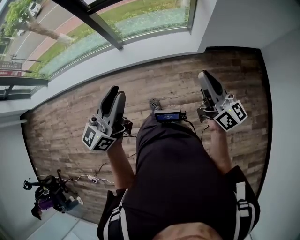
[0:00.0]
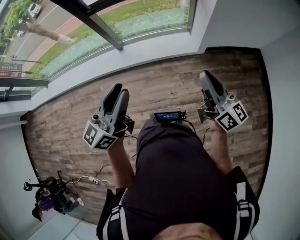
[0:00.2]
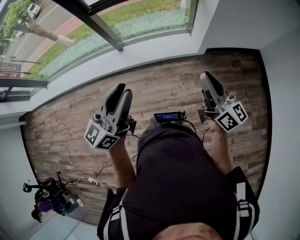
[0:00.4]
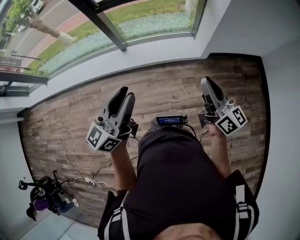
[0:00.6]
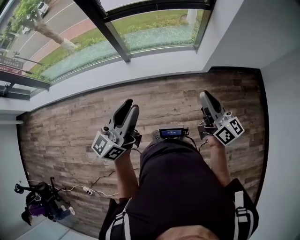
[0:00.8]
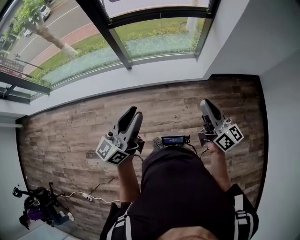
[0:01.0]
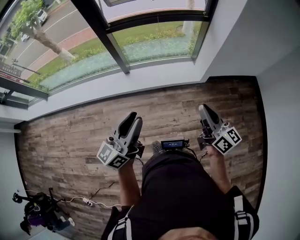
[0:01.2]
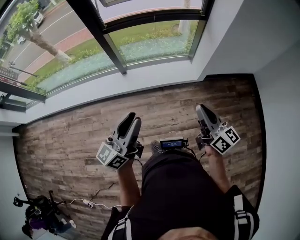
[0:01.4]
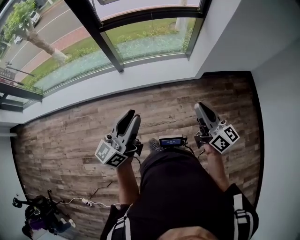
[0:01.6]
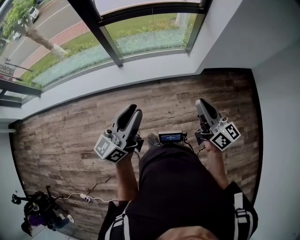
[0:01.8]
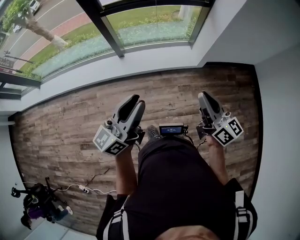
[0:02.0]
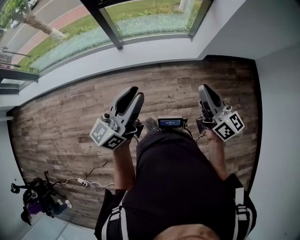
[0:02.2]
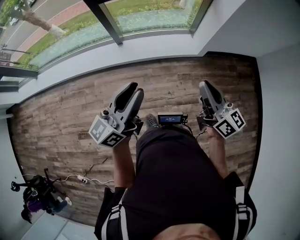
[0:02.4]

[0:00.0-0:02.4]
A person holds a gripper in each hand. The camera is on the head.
0:00.0 to 0:01.2: Both grippers move to the left, some 10 cm.
0:01.2 to 0:02.4: The grippers stay close to where they were, moving slightly.

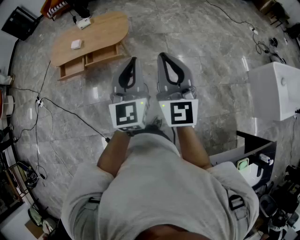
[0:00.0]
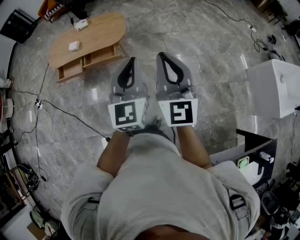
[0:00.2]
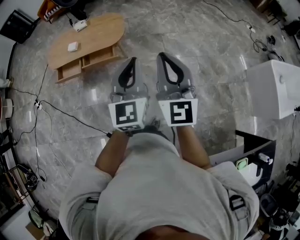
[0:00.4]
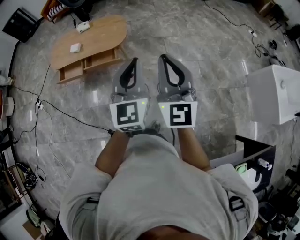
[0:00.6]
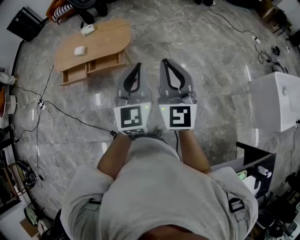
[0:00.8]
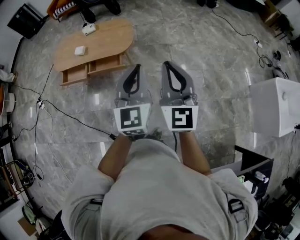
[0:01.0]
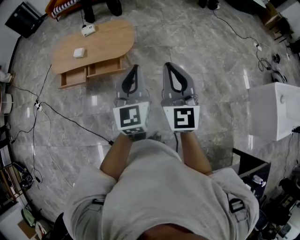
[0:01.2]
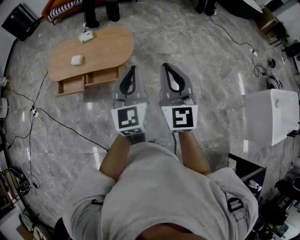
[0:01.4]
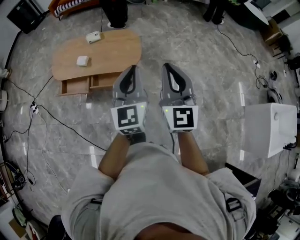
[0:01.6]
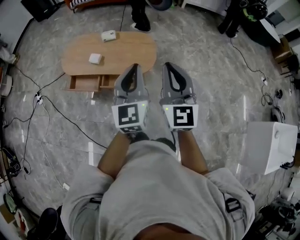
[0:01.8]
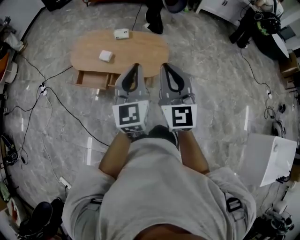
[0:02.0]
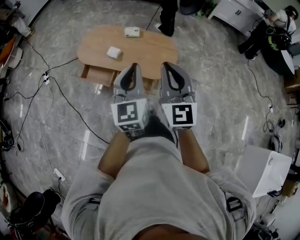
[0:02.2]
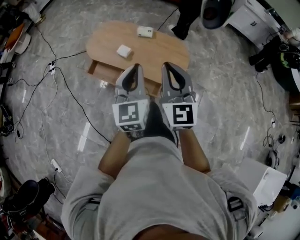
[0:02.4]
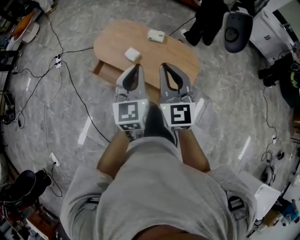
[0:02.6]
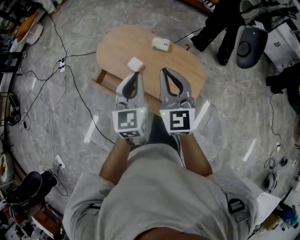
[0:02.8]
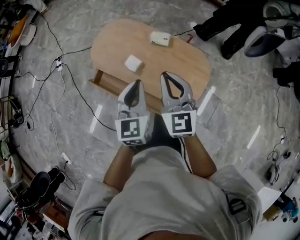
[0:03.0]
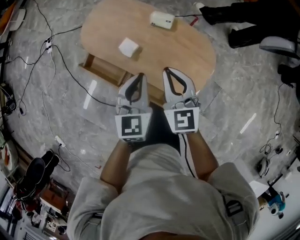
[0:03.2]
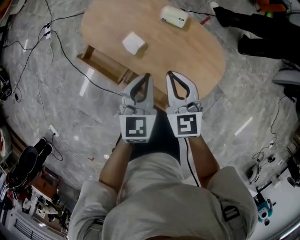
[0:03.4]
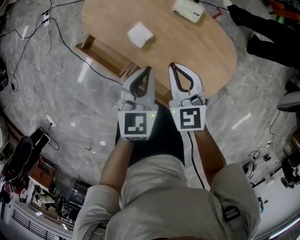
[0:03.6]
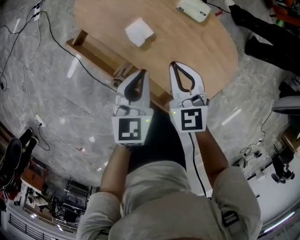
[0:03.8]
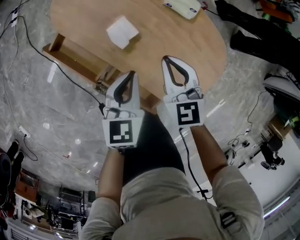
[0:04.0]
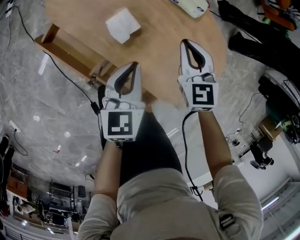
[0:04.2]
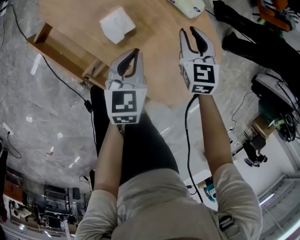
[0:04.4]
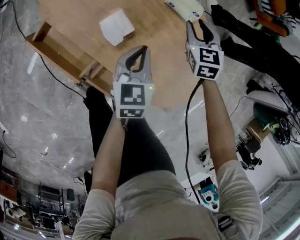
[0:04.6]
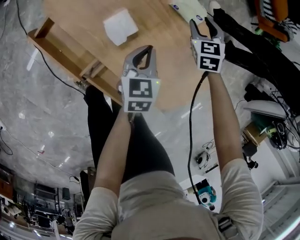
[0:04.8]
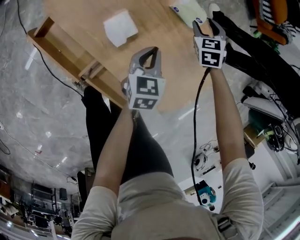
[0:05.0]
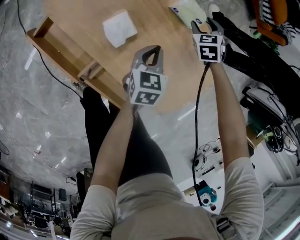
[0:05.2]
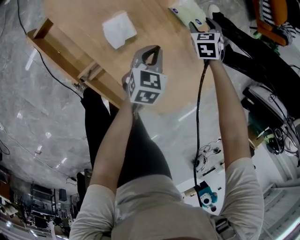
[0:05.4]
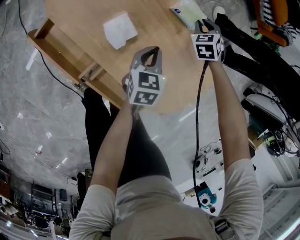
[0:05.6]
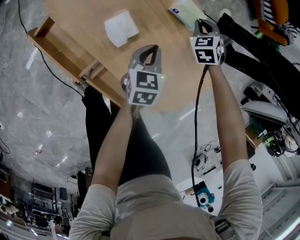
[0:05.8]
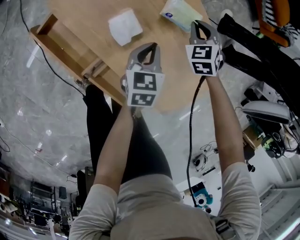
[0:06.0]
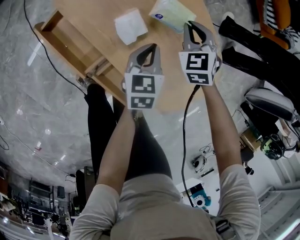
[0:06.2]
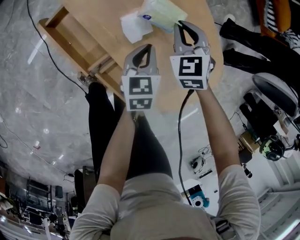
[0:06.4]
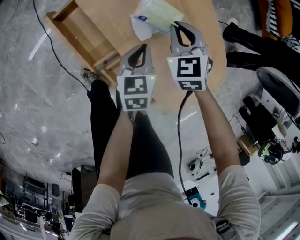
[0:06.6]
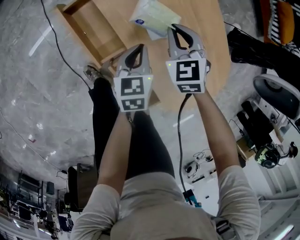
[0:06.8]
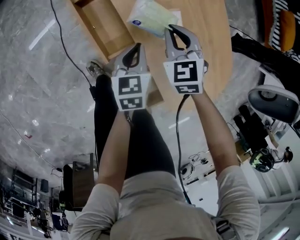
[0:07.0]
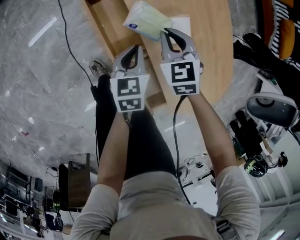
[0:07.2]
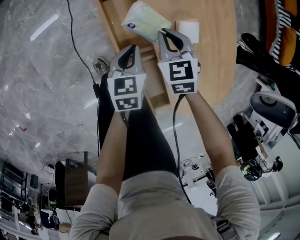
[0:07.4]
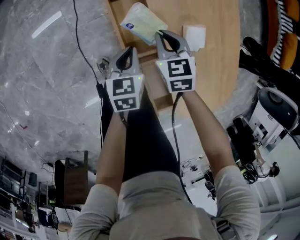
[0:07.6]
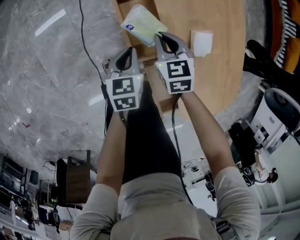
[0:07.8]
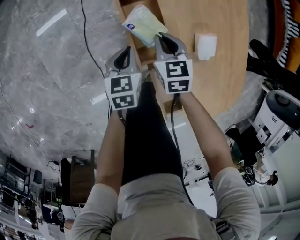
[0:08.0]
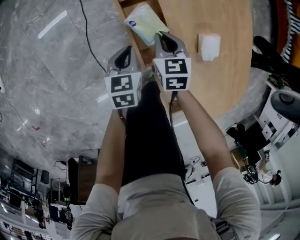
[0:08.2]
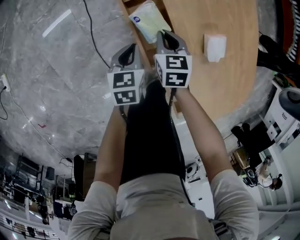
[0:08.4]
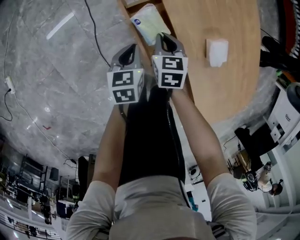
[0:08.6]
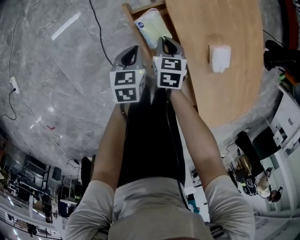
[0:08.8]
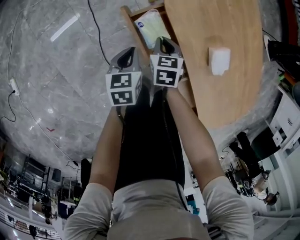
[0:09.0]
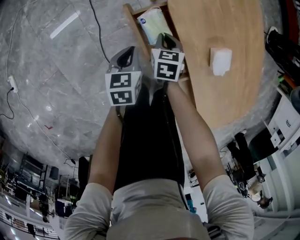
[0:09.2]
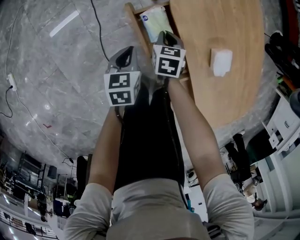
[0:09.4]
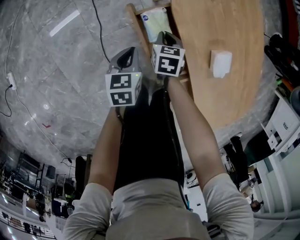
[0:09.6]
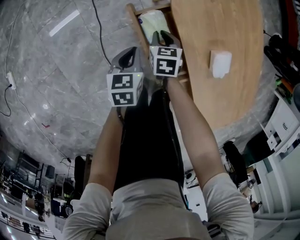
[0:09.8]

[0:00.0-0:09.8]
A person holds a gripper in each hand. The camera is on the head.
0:00.0 to 0:01.4: Both grippers move forward, roughly 20 cm.
0:01.4 to 0:02.8: The pair of grippers is taken some 60 cm. The left gripper changes its angle by approximately 30 degrees, while the right gripper swivels about 40 degrees.
0:02.8 to 0:04.2: The right gripper shifts approximately 50 cm downward and forward, and tilts its fingers about 30 degrees downward, while the left gripper moves downward, approximately 40 cm, and changes its angle by approximately 30 degrees.
0:04.2 to 0:05.6: The right gripper heads forward, downward and to the right, covering about 25 cm, rotates approximately 30 degrees, and opens and closes again. The left gripper is displaced downward, to the right and forward by approximately 15 cm.
0:05.6 to 0:07.0: The right gripper changes place by roughly 40 cm, and turns by approximately 30 degrees. Meanwhile the left gripper moves roughly 25 cm, and turns by about 30 degrees.
0:07.0 to 0:08.4: The right gripper shifts about 20 cm to the left and downward, and rotates approximately 30 degrees; the left gripper shifts some 20 cm to the left.
0:08.4 to 0:09.8: The left gripper changes place by some 5 cm. The right gripper is displaced downward by approximately 5 cm.

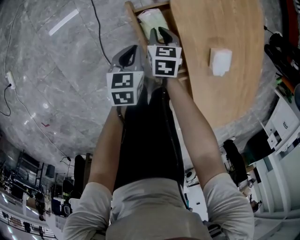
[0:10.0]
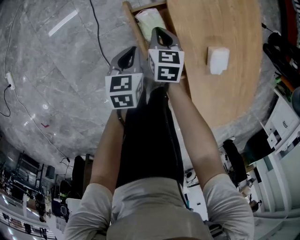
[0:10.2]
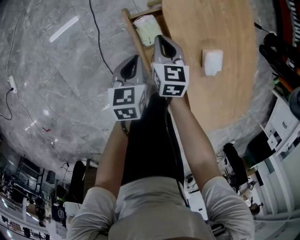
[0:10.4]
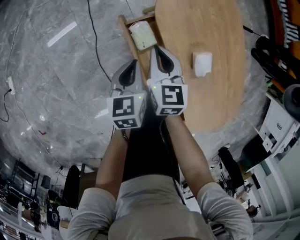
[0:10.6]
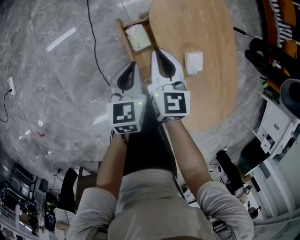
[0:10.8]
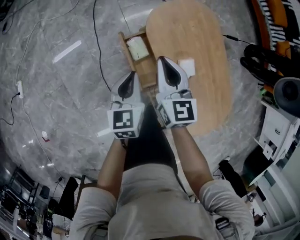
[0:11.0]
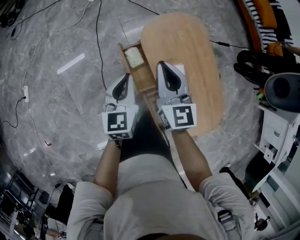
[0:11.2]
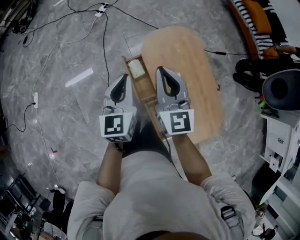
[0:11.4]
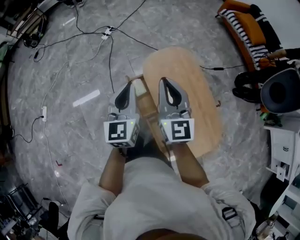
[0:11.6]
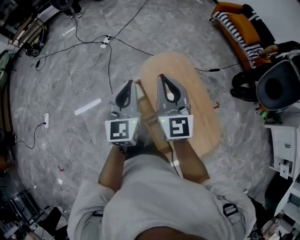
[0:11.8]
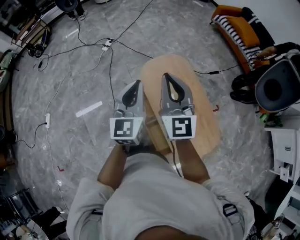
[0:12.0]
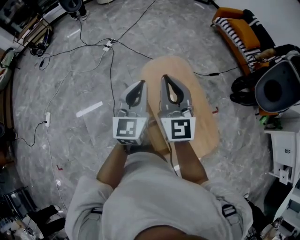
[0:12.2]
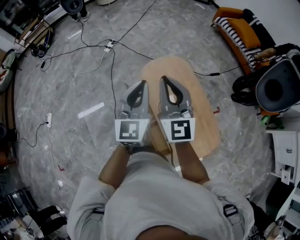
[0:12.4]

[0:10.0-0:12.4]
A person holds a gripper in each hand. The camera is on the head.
0:10.0 to 0:11.2: Both grippers move upward, approximately 40 cm. The left gripper turns by about 30 degrees. The right gripper tilts its fingers about 40 degrees upward.
0:11.2 to 0:12.4: The right gripper moves upward, to the right and backward, roughly 25 cm, and changes its angle by about 20 degrees; the left gripper goes approximately 30 cm upward and to the right, and rotates approximately 20 degrees.

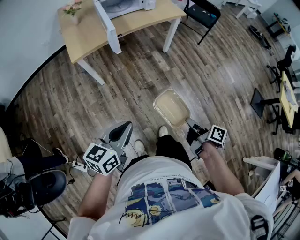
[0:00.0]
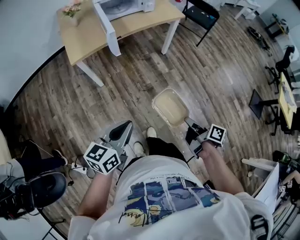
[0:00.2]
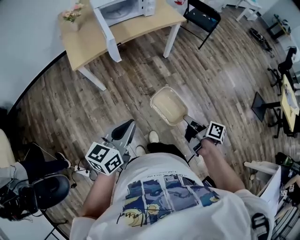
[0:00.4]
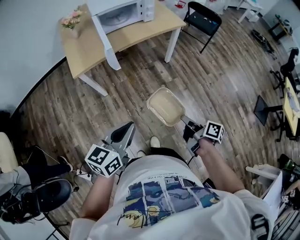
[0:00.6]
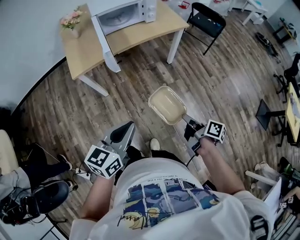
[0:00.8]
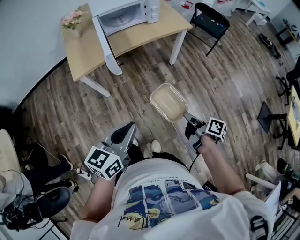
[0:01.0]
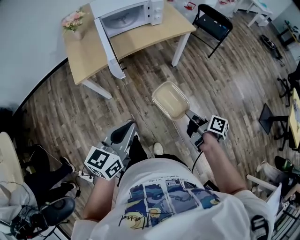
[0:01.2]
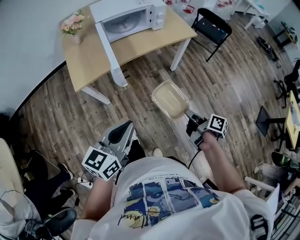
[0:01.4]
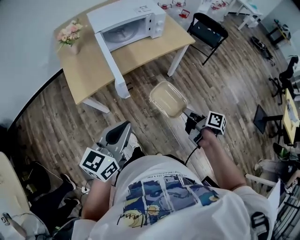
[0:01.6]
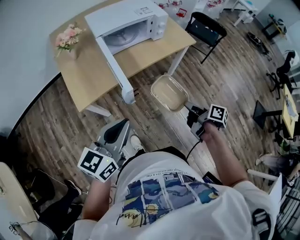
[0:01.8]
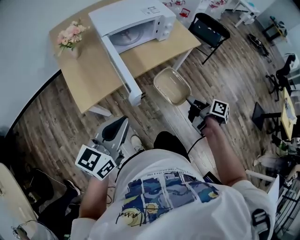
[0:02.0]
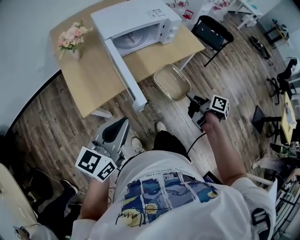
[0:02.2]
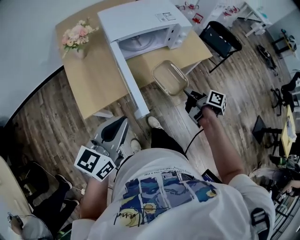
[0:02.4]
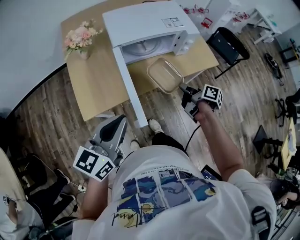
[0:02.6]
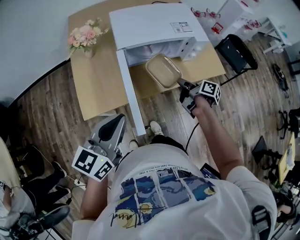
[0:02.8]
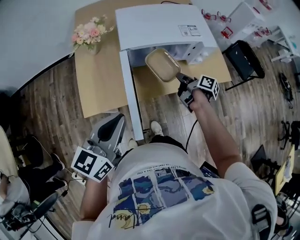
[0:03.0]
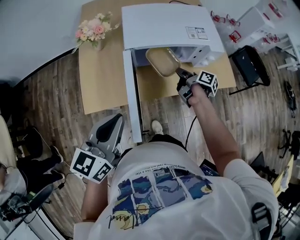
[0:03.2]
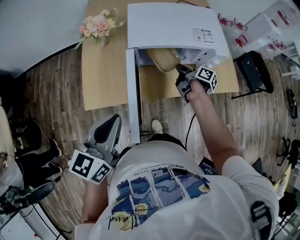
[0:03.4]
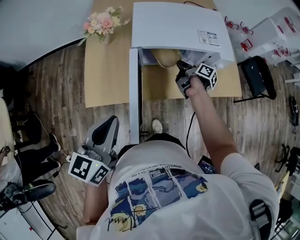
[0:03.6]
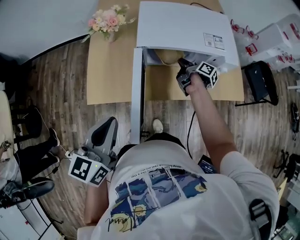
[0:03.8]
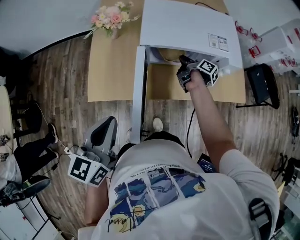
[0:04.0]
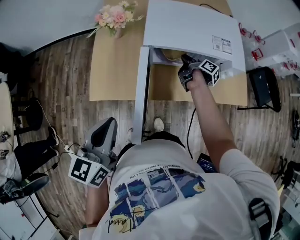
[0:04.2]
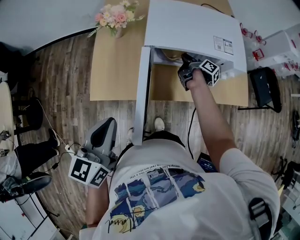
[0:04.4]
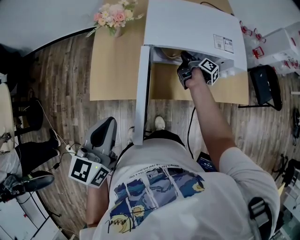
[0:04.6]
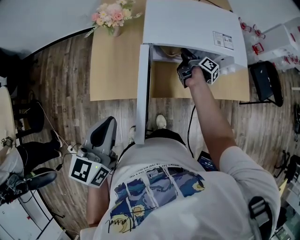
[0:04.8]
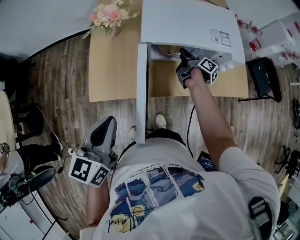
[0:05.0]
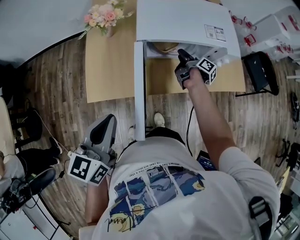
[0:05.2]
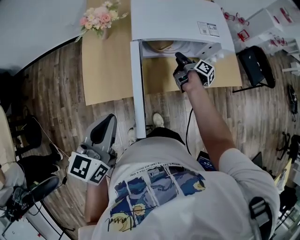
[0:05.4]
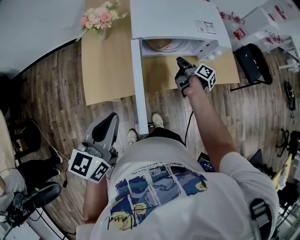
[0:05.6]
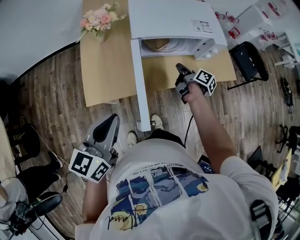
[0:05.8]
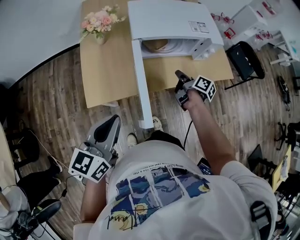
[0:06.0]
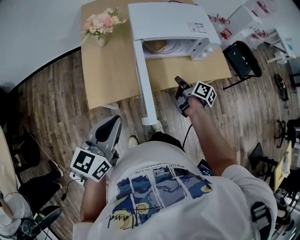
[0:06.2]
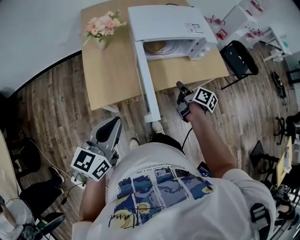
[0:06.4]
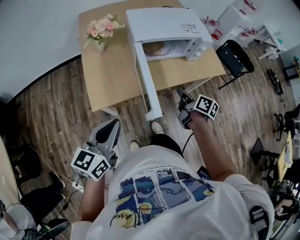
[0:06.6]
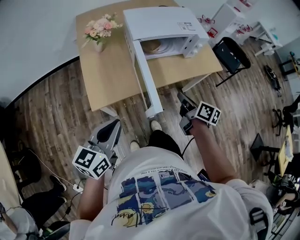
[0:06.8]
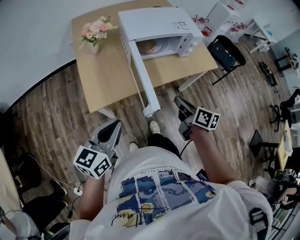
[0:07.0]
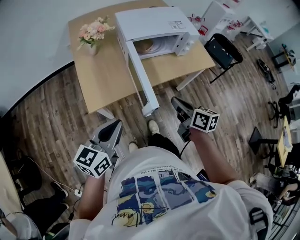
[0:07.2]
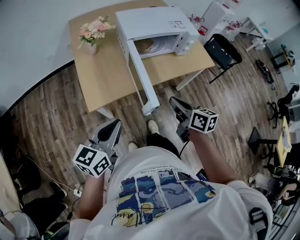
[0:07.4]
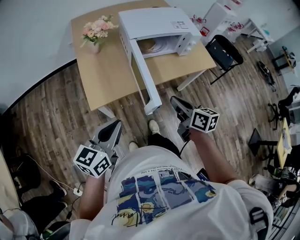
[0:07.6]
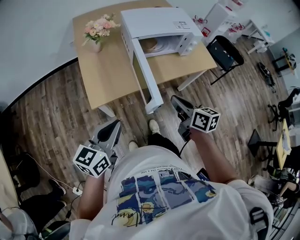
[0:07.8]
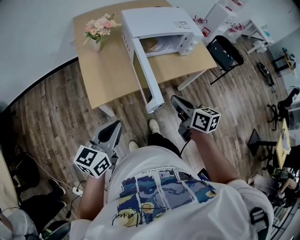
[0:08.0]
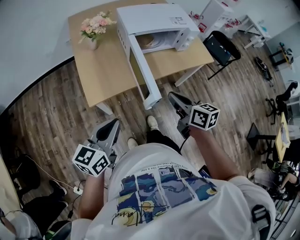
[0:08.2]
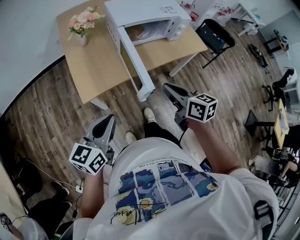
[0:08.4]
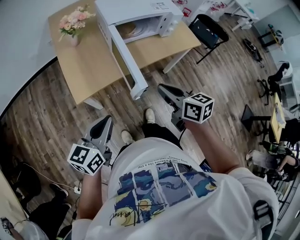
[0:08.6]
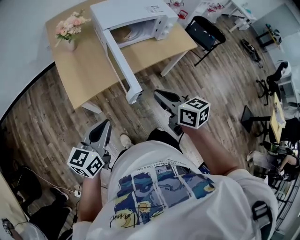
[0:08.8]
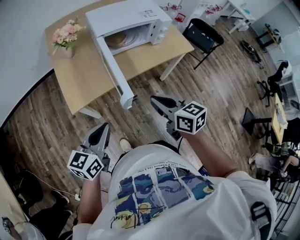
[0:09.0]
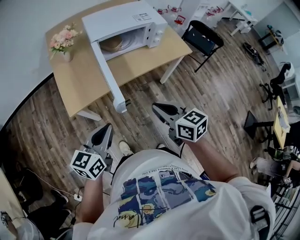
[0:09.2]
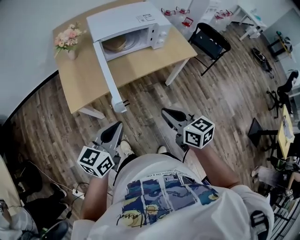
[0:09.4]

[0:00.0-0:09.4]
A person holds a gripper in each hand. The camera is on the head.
0:00.0 to 0:01.6: Both grippers move forward, approximately 30 cm.
0:01.6 to 0:03.2: The left gripper goes some 25 cm forward, and turns by some 20 degrees. Meanwhile the right gripper heads forward, covering approximately 50 cm.
0:03.2 to 0:04.8: The right gripper shifts roughly 10 cm forward, and opens up.
0:04.8 to 0:06.2: The right gripper goes about 20 cm backward, rotates about 20 degrees, and closes its fingers, while the left gripper goes about 5 cm backward, and changes its angle by approximately 20 degrees.
0:06.2 to 0:07.8: The left gripper moves backward, some 10 cm. Meanwhile the right gripper goes about 25 cm backward and upward, and turns by roughly 30 degrees.
0:07.8 to 0:09.4: The right gripper travels to the right and backward by some 15 cm. The left gripper shifts roughly 15 cm to the right.
